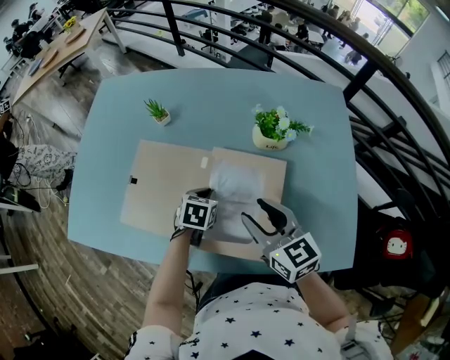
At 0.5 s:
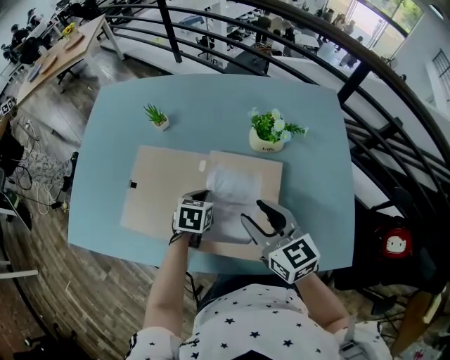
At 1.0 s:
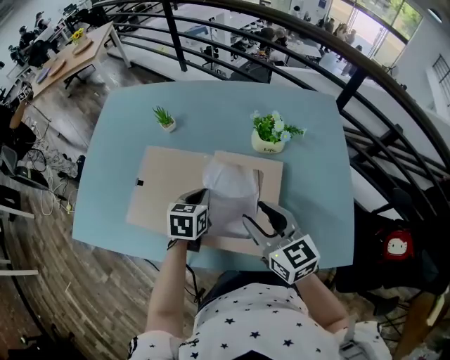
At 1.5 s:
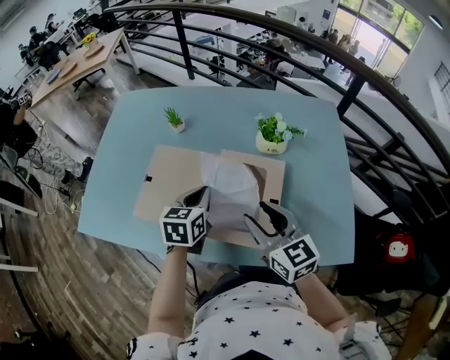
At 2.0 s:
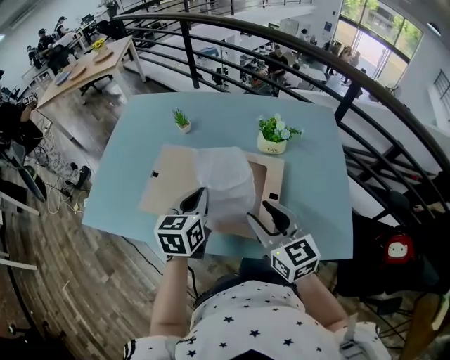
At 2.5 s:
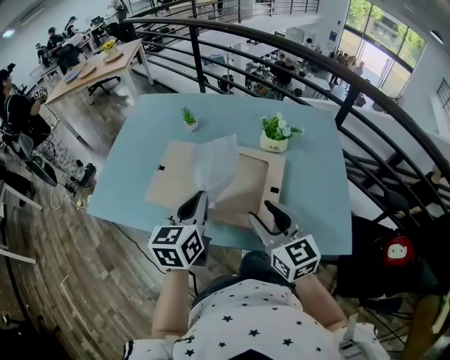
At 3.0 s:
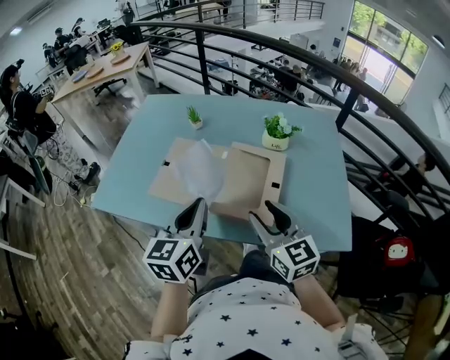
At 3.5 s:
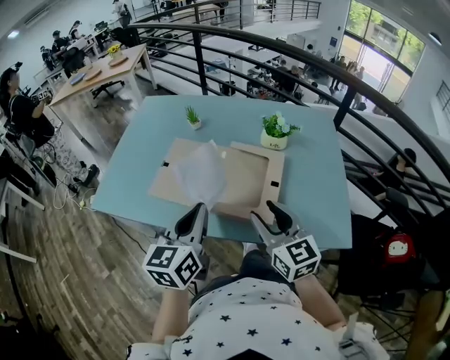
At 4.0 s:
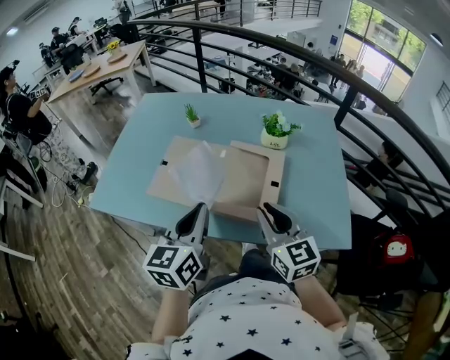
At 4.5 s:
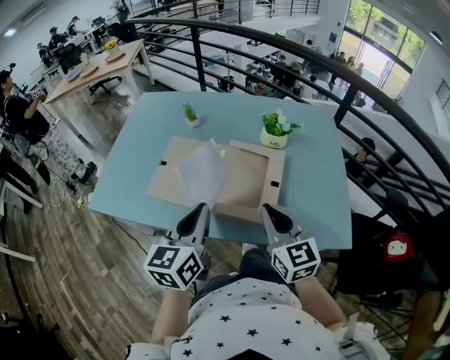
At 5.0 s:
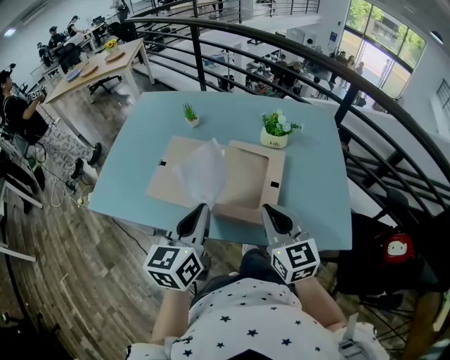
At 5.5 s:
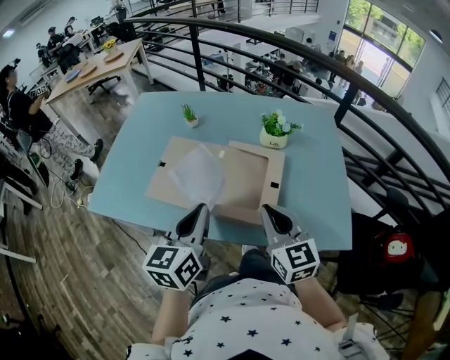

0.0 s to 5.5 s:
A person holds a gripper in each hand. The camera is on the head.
0.0 to 2.0 s: The left gripper shifts roughly 25 cm upward and backward, and points its fingers approximately 30 degrees further upward; the right gripper shifts roughly 10 cm backward and upward.
2.0 to 3.5 s: The left gripper is displaced backward and upward by roughly 15 cm; the right gripper travels backward by about 10 cm.
3.5 to 5.5 s: The right gripper closes up.

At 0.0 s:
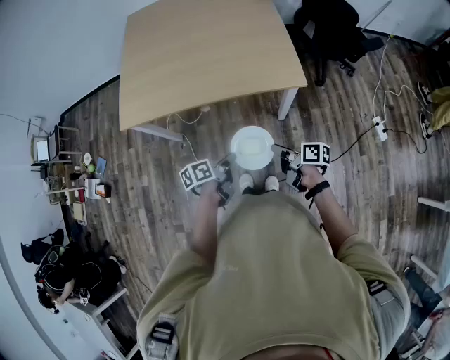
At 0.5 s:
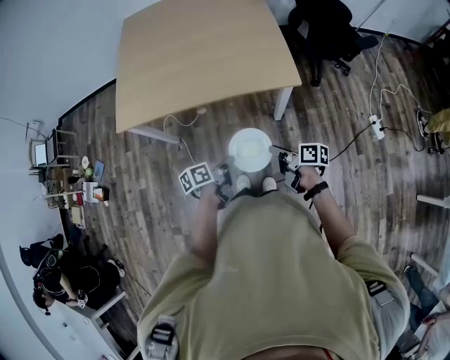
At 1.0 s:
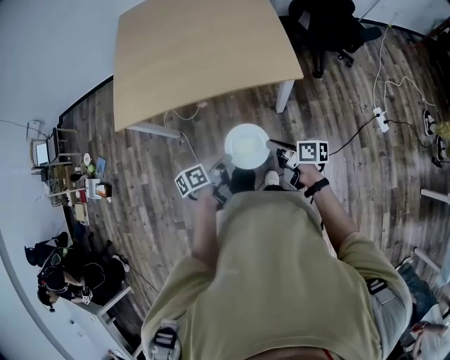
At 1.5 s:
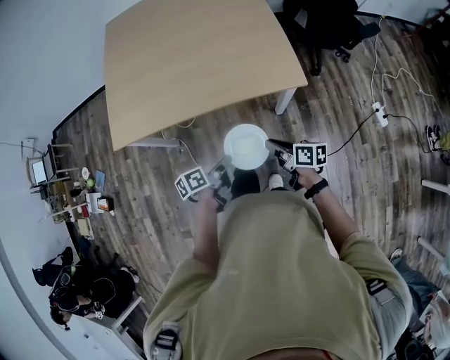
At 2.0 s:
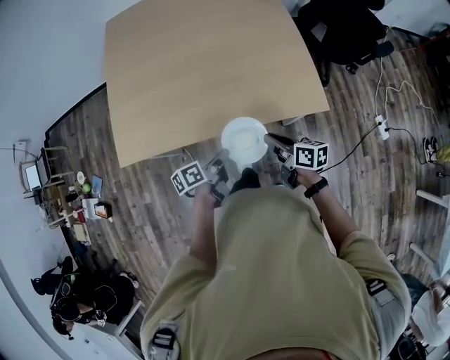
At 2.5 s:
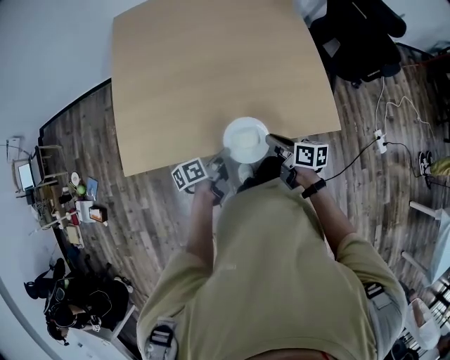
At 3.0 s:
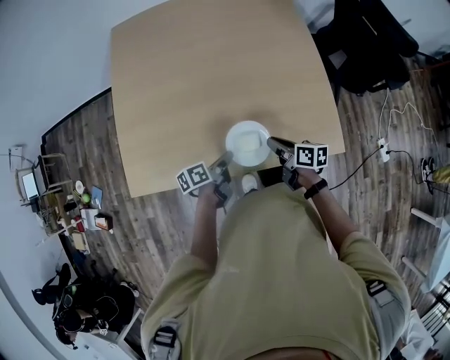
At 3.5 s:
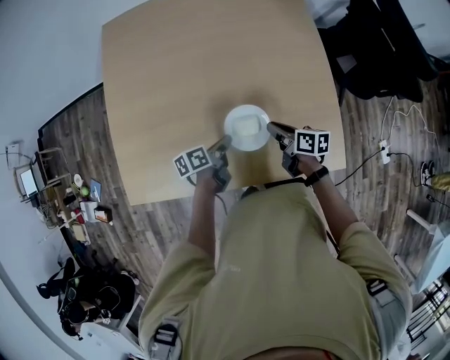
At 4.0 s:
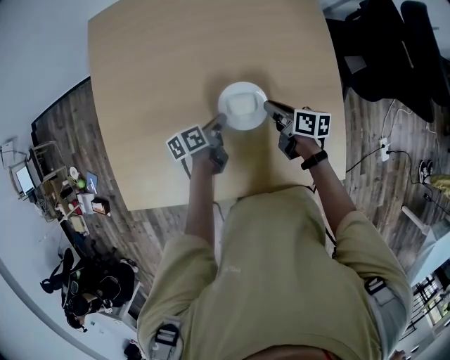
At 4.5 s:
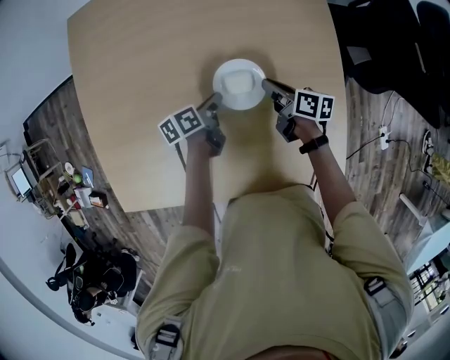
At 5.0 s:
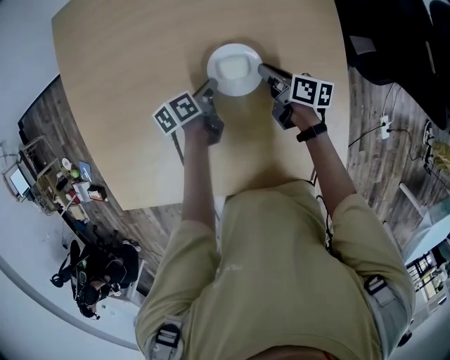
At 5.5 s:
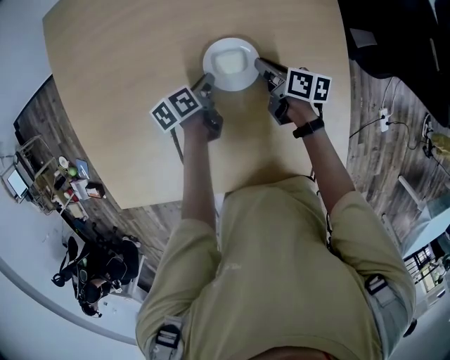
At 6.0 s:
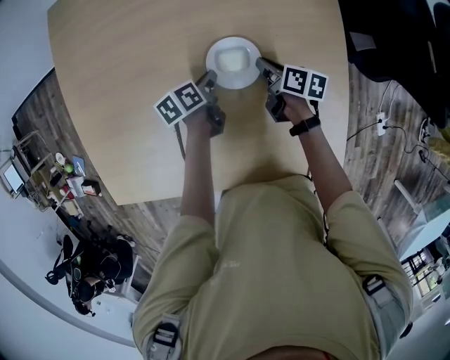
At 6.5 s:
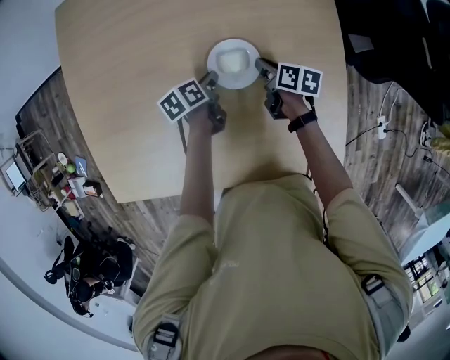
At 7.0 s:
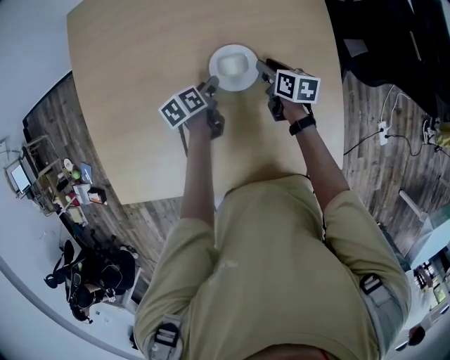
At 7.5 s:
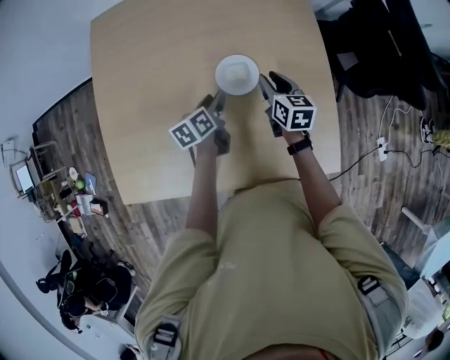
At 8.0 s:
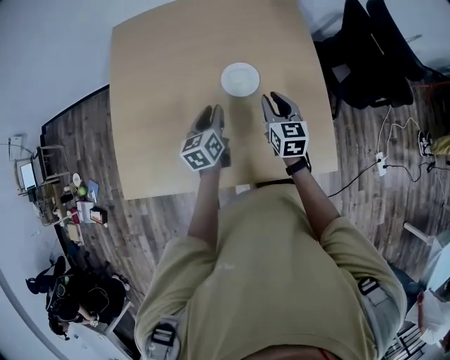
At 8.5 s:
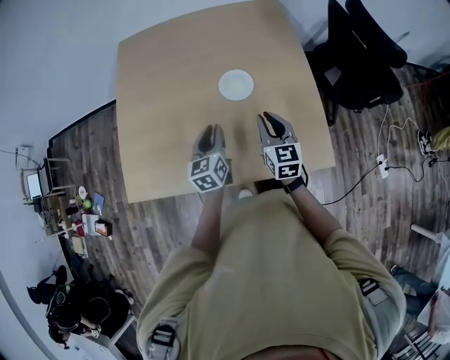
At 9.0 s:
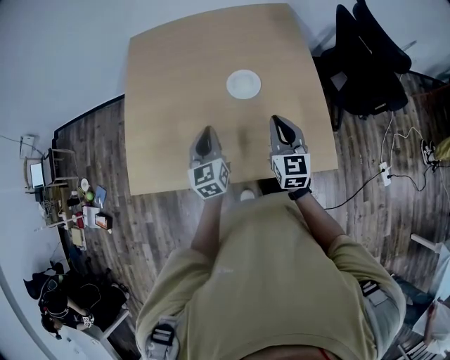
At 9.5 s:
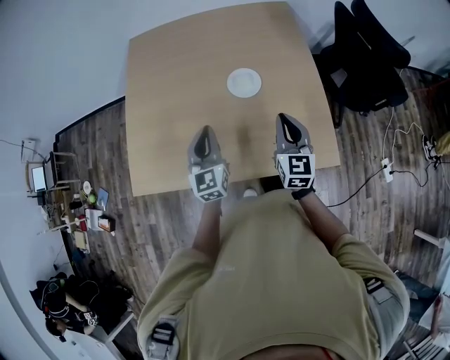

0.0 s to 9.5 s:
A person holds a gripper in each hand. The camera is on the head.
0.0 to 2.0 s: Both grippers move forward, roughly 20 cm. The right gripper swivels some 20 degrees.
2.0 to 4.0 s: The pair of grippers is taken forward, approximately 40 cm.
4.0 to 5.5 s: The two grippers go some 10 cm forward and downward.
5.5 to 7.5 s: The grippers both shift upward and backward by roughly 15 cm. The left gripper opens up. Meanwhile the right gripper swivels roughly 40 degrees, and opens up.
7.5 to 9.5 s: Both grippers move backward and upward, roughly 25 cm. The right gripper swivels approximately 30 degrees, and closes its fingers. The left gripper rotates roughly 60 degrees, and closes.

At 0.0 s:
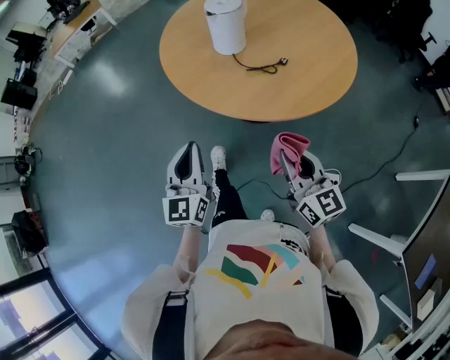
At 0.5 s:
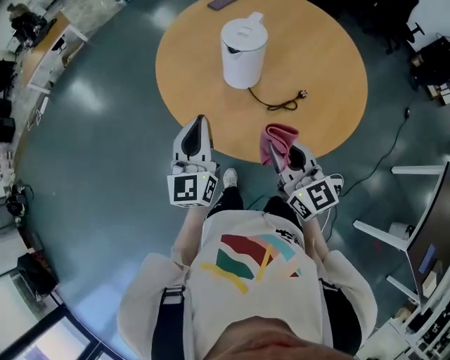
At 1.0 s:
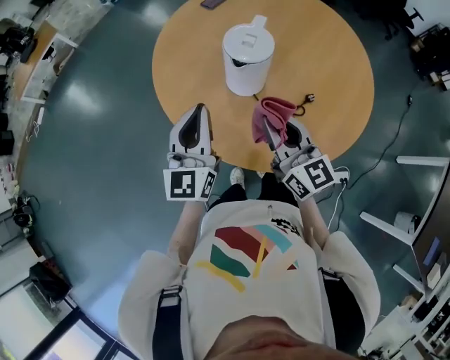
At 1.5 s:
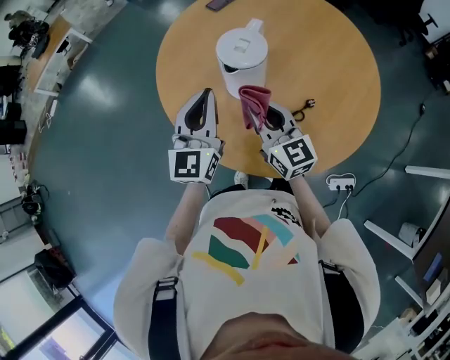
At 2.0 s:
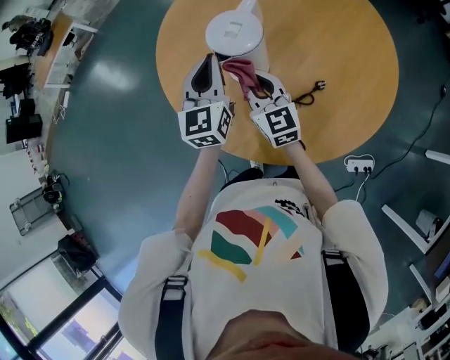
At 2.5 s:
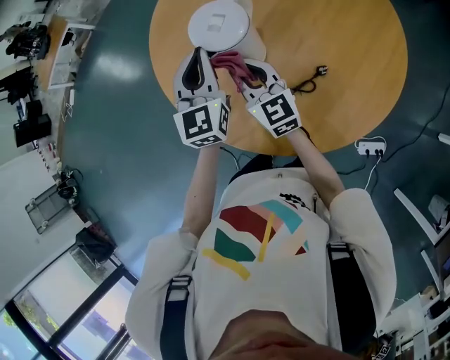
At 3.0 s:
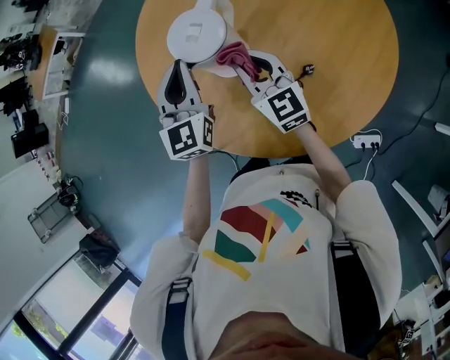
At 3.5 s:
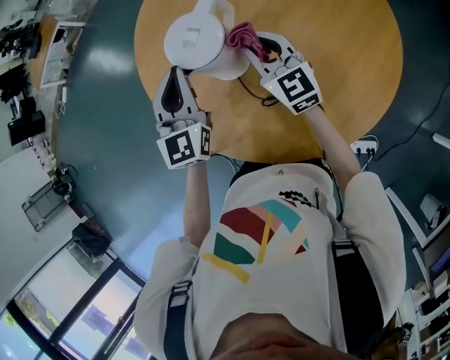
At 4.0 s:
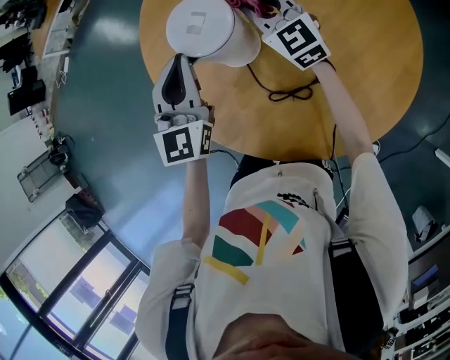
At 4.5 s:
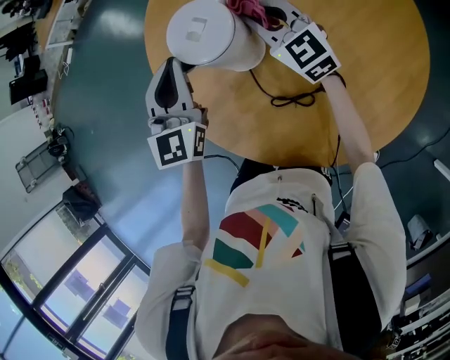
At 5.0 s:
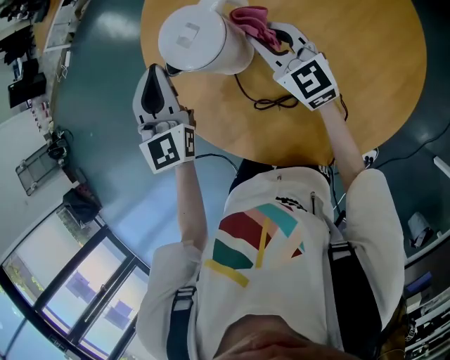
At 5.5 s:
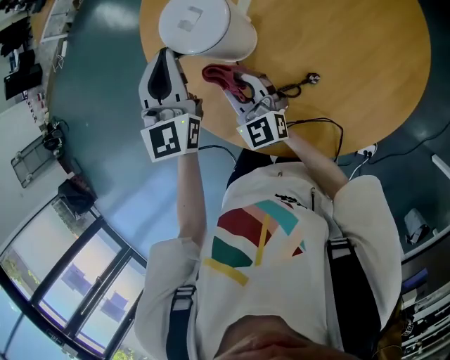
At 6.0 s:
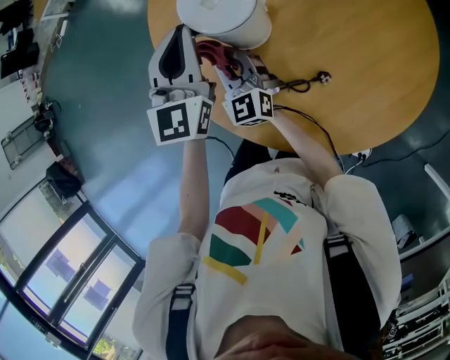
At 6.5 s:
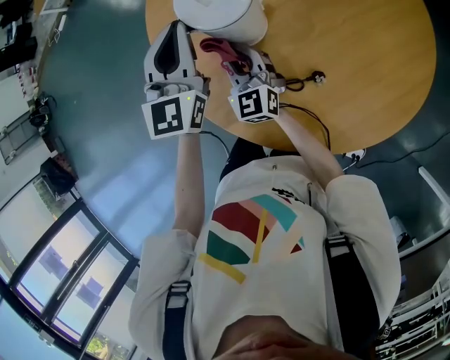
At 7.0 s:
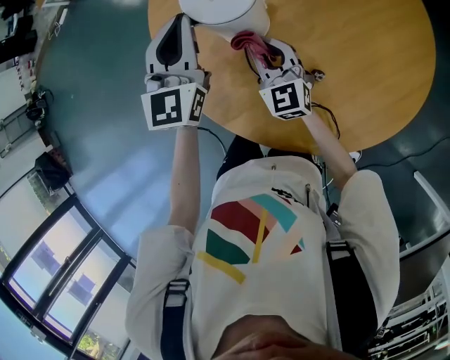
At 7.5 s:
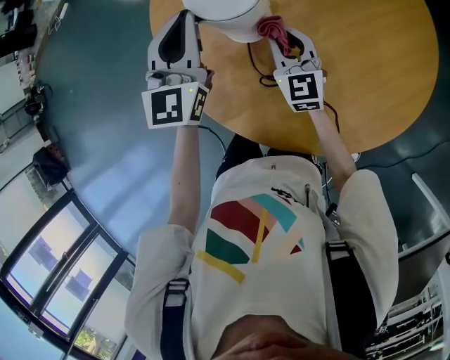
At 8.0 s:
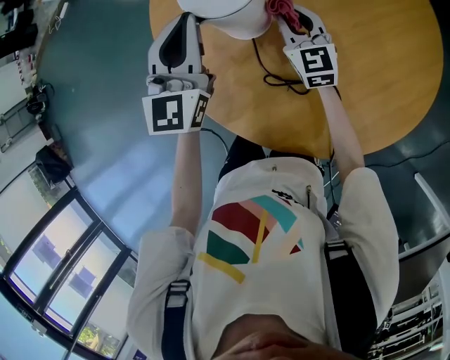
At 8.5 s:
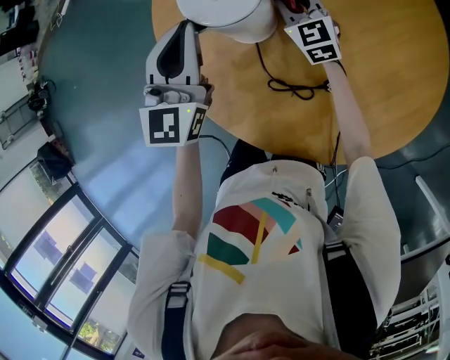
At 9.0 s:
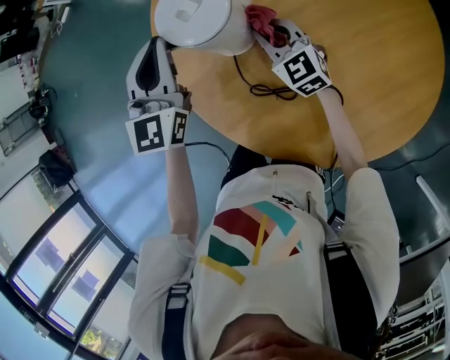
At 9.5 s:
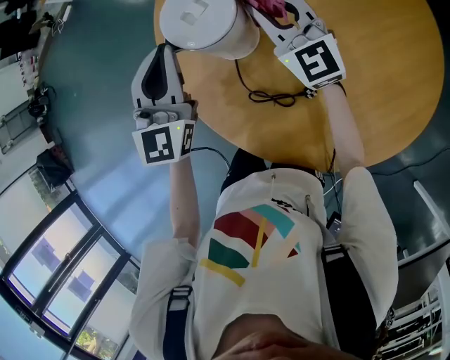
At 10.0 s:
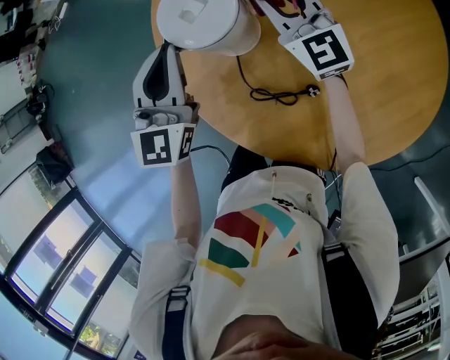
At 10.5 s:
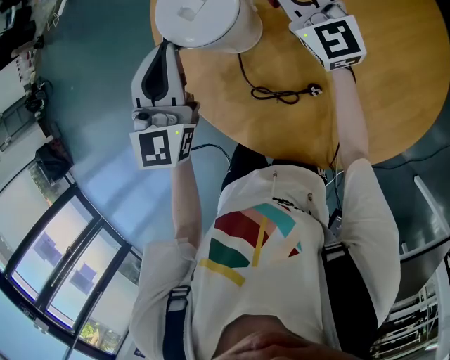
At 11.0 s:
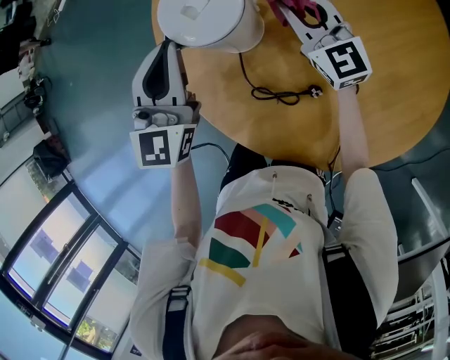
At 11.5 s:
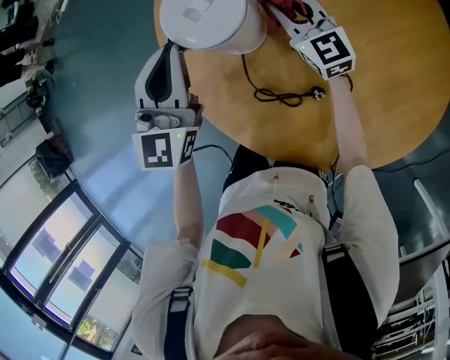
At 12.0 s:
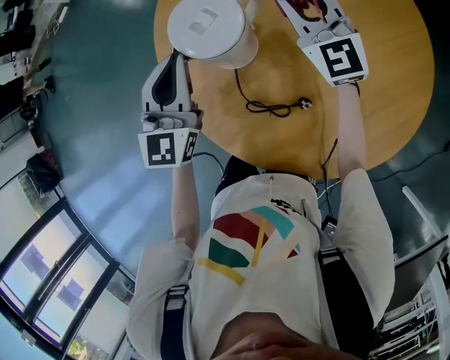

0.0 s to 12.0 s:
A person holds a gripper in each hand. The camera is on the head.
0.0 to 2.0 s: The two grippers travel together, forward, roughly 50 cm.
2.0 to 4.0 s: The right gripper shifts approximately 20 cm forward and to the right, and rotates approximately 20 degrees.
4.0 to 6.0 s: The right gripper travels to the left, downward and backward by approximately 25 cm.
6.0 to 8.0 s: The right gripper shifts some 15 cm to the right and forward.
8.0 to 10.0 s: The right gripper moves upward and forward, roughly 10 cm.
10.0 to 12.0 s: The right gripper reaches about 10 cm downward, then returns.
